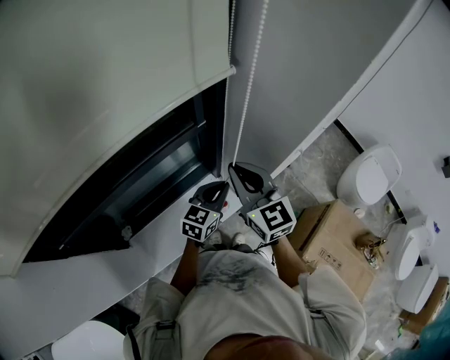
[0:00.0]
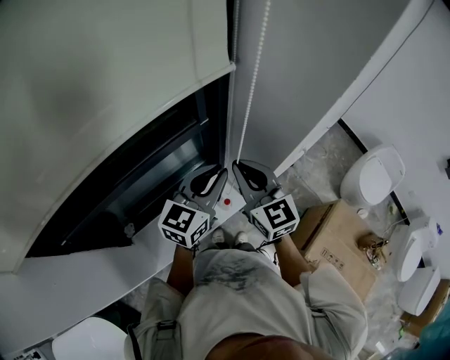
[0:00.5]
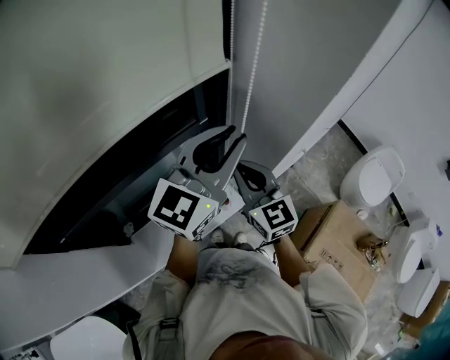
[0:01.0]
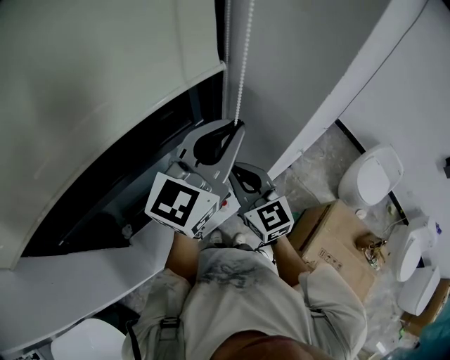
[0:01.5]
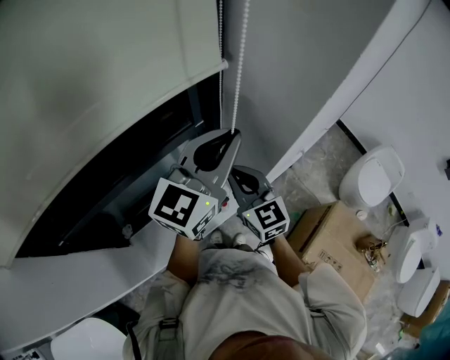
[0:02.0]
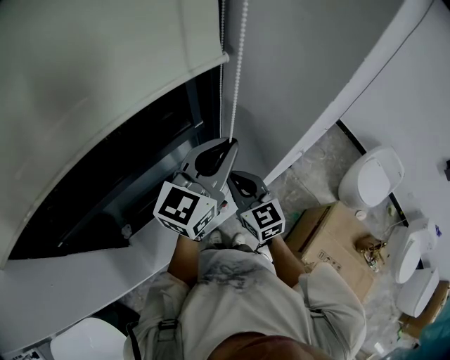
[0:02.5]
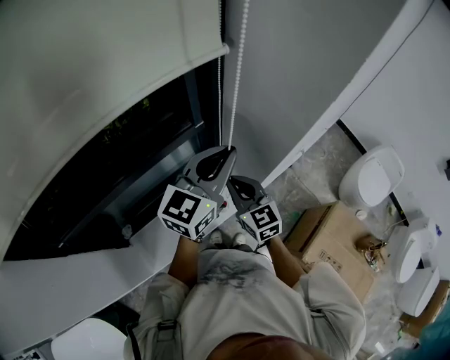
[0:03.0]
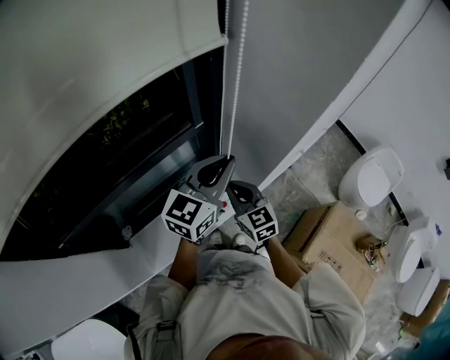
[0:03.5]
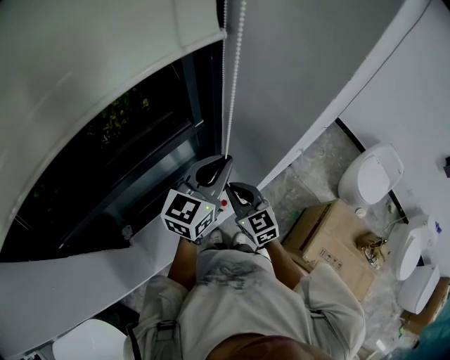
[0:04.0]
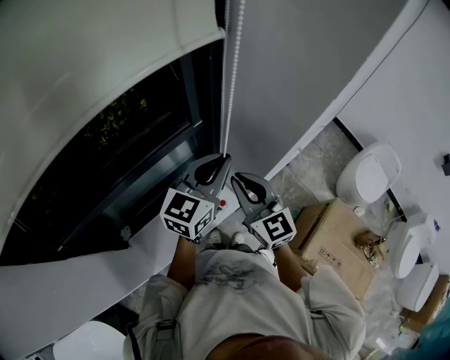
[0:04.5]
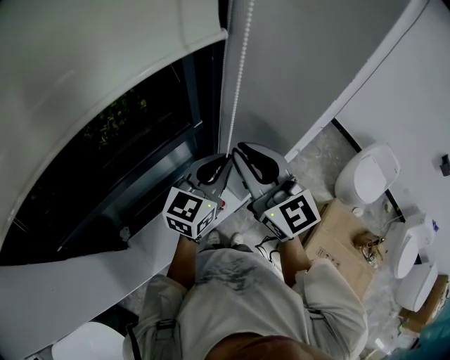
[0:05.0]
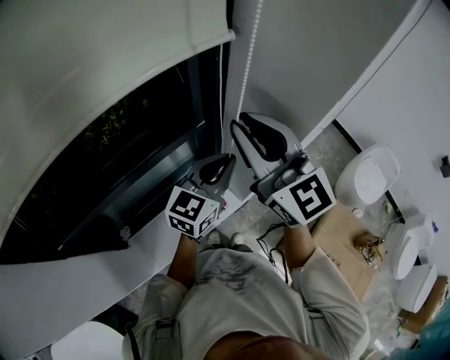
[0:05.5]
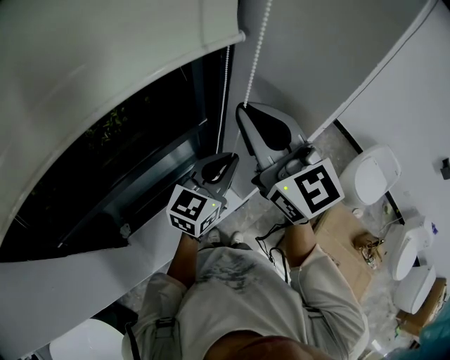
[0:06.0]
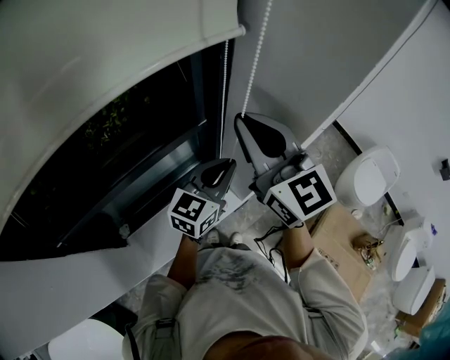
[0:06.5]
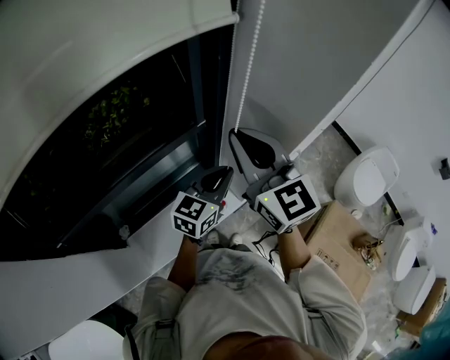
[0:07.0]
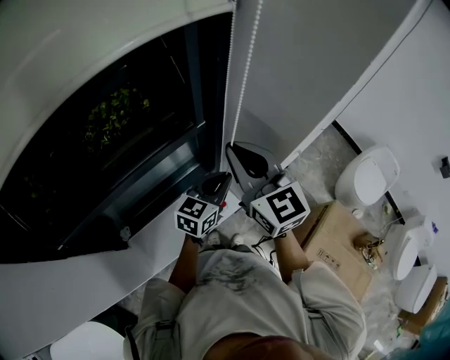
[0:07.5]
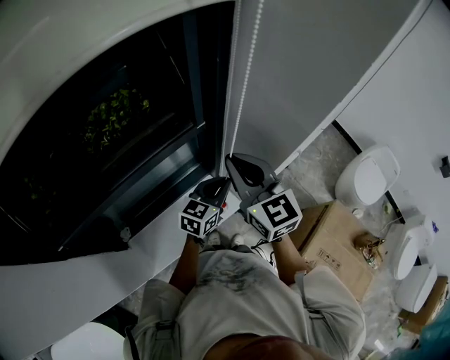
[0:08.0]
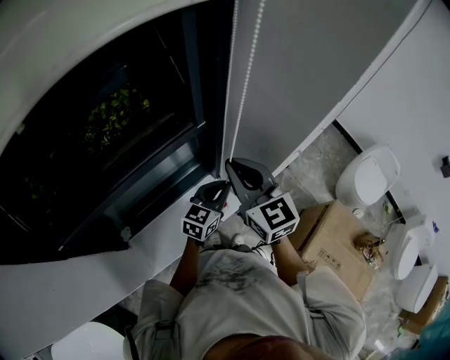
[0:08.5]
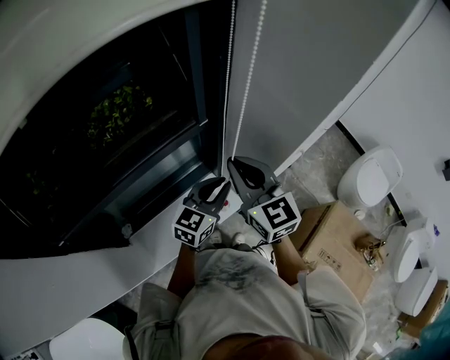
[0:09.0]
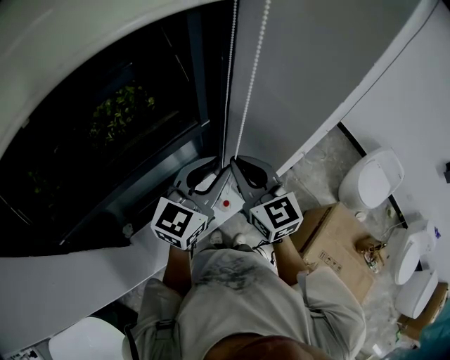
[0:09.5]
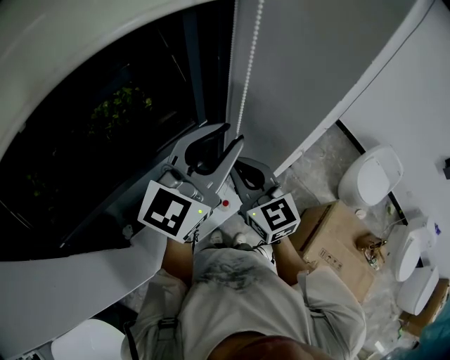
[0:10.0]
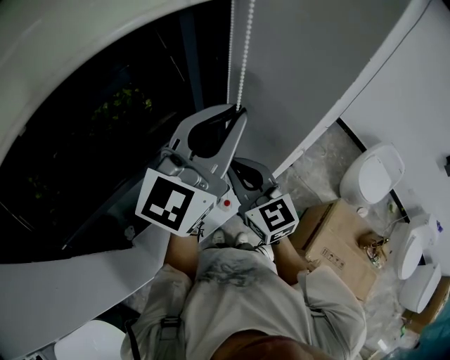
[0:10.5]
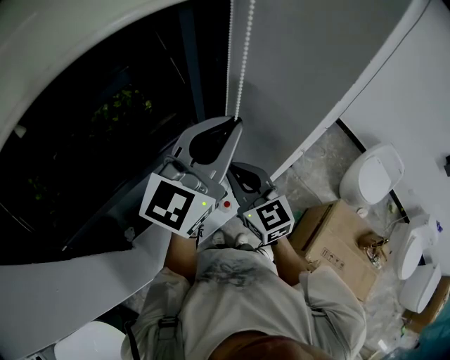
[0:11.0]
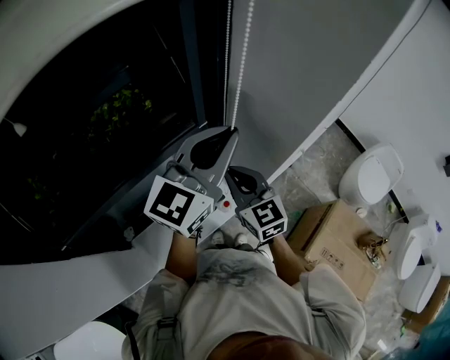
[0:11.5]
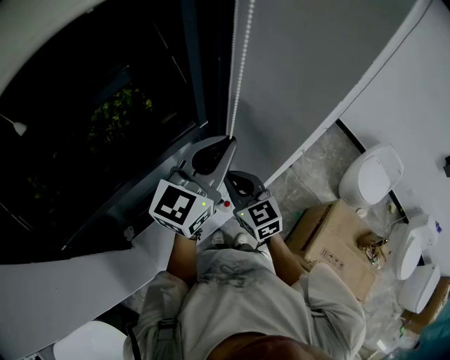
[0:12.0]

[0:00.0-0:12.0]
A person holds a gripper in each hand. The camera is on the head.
0:00.0 to 0:02.0: The left gripper goes some 30 cm upward, and turns by some 30 degrees.
0:02.0 to 0:04.0: The grippers both shift downward by approximately 10 cm.
0:04.0 to 0:06.0: The right gripper heads upward, covering some 30 cm, and swivels some 30 degrees.
0:06.0 to 0:08.0: Both grippers move downward, some 15 cm.
0:08.0 to 0:10.0: The left gripper goes some 30 cm upward, swivels approximately 30 degrees, and opens.
0:10.0 to 0:12.0: The right gripper moves downward, approximately 10 cm, while the left gripper travels downward by some 5 cm, and closes.

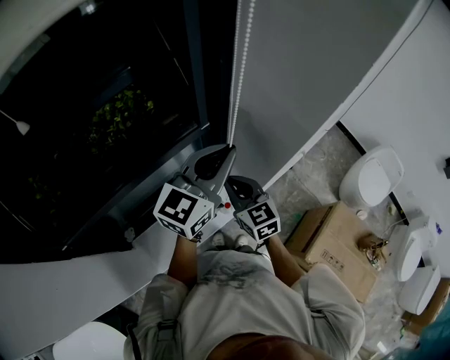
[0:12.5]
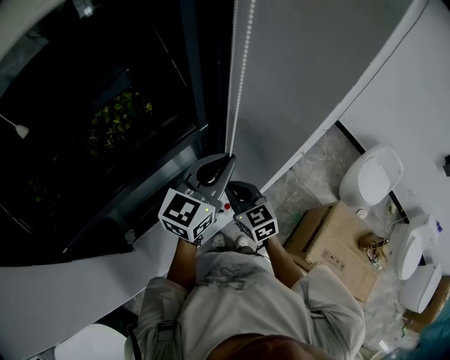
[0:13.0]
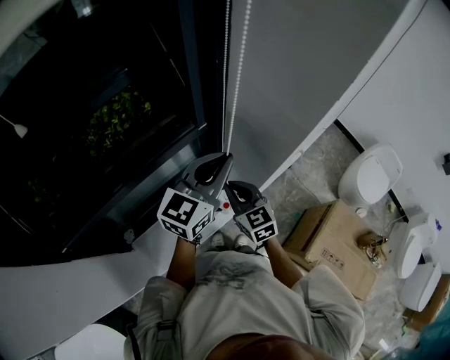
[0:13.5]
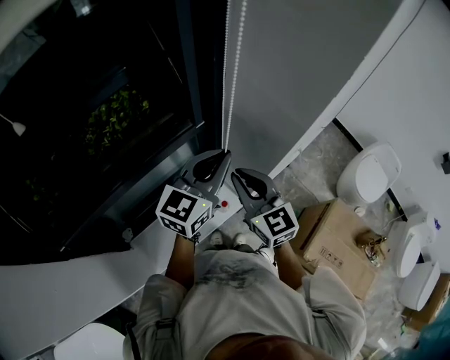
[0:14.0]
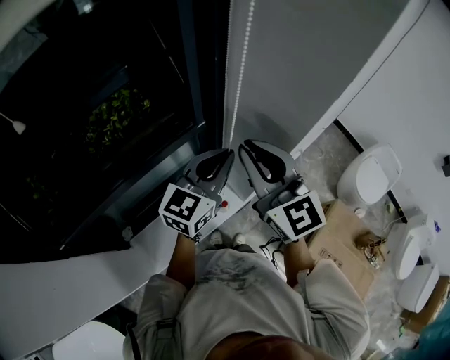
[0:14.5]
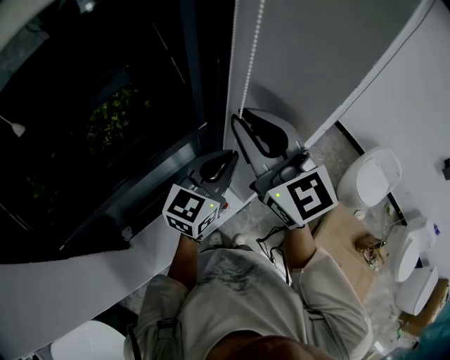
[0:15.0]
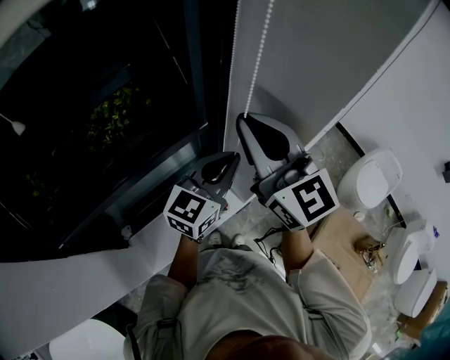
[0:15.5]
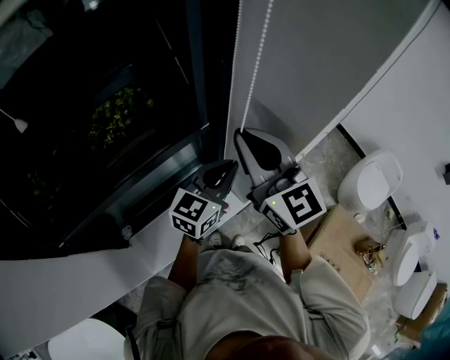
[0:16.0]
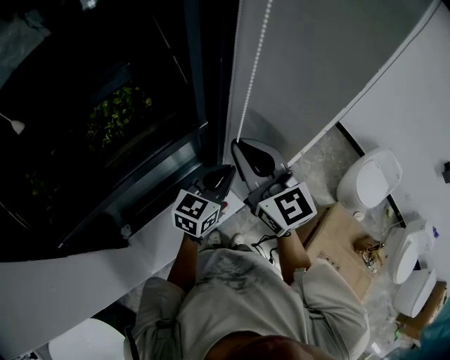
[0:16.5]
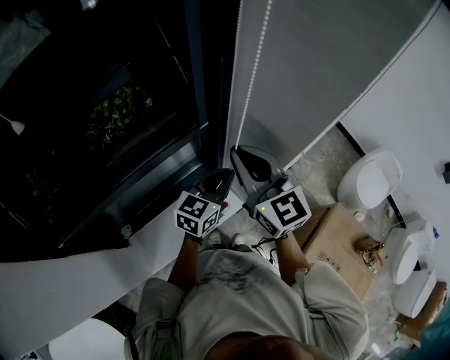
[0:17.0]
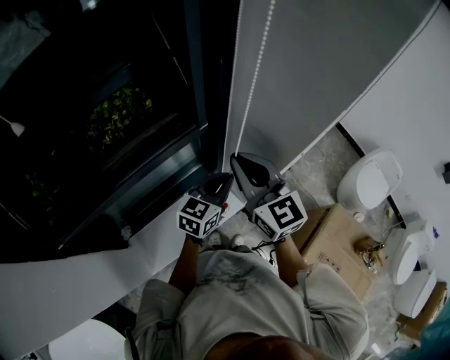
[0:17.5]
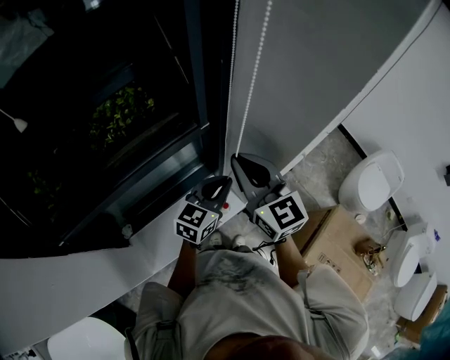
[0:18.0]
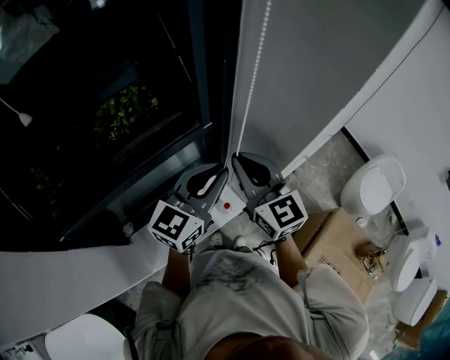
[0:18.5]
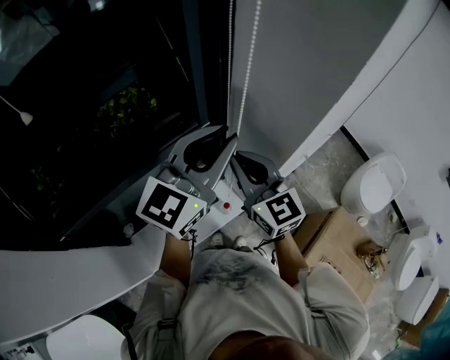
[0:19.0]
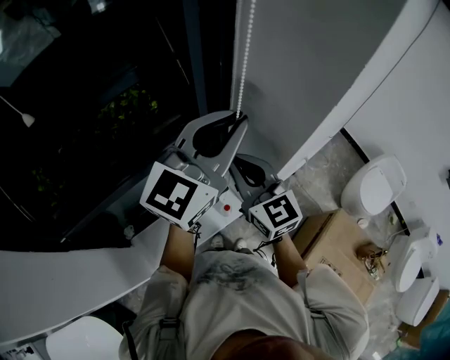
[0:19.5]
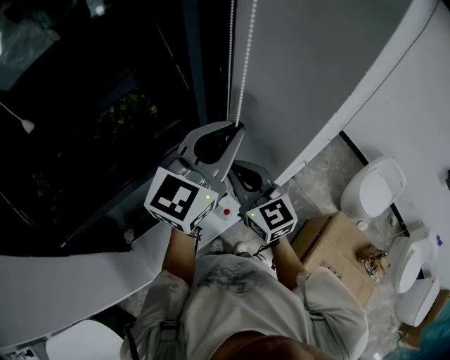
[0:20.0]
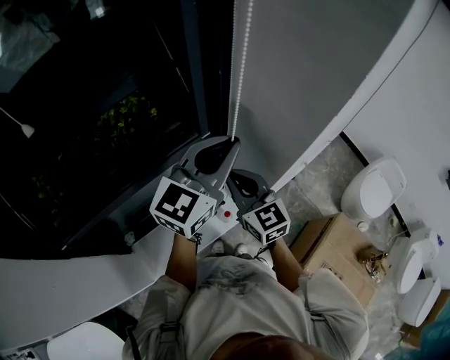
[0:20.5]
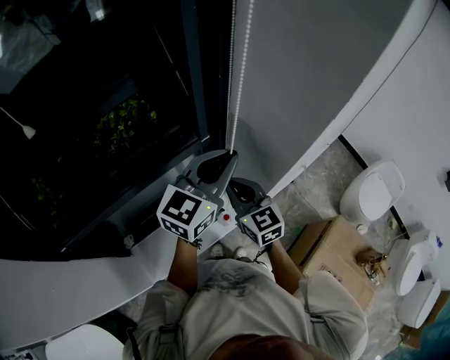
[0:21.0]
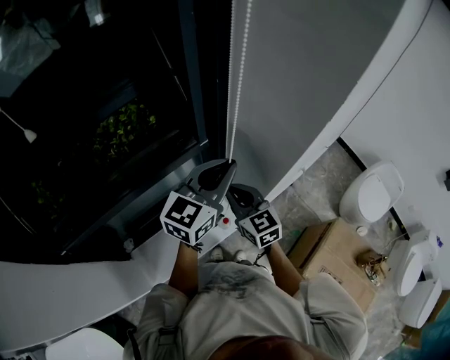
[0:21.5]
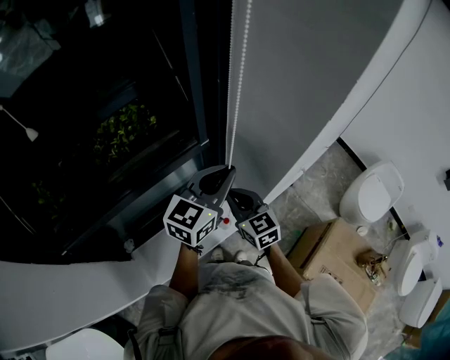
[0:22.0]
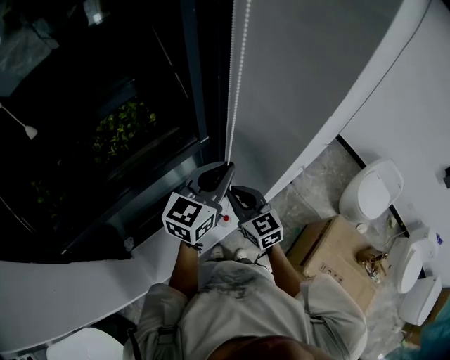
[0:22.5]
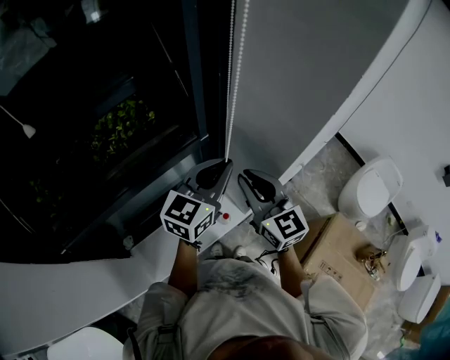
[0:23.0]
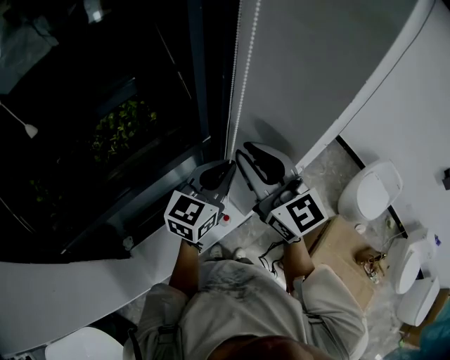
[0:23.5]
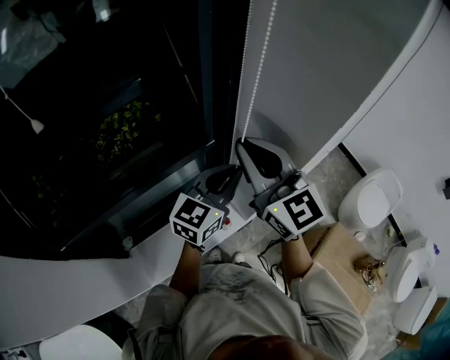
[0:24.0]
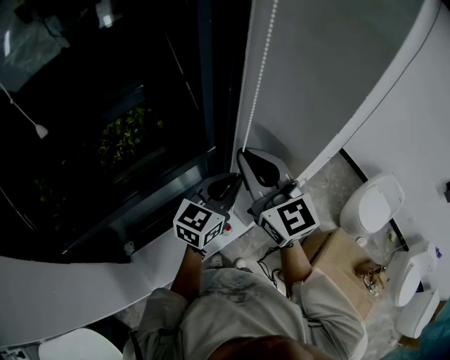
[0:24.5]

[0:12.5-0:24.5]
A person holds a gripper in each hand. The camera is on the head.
0:12.5 to 0:14.5: The right gripper goes about 20 cm upward, and swivels some 20 degrees.
0:14.5 to 0:16.5: The right gripper moves approximately 5 cm upward and comes back. Meanwhile the left gripper is displaced downward by some 10 cm.
0:16.5 to 0:18.5: The right gripper moves some 5 cm. The left gripper moves upward, roughly 10 cm.
0:18.5 to 0:20.5: The left gripper goes about 10 cm upward, while the right gripper shifts some 5 cm downward.
0:20.5 to 0:22.5: Both grippers move downward, some 10 cm.
0:22.5 to 0:24.5: The right gripper goes about 20 cm upward, and rotates approximately 20 degrees.

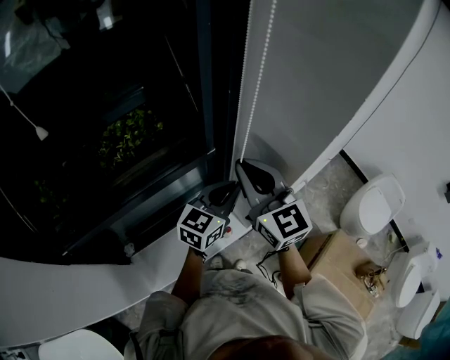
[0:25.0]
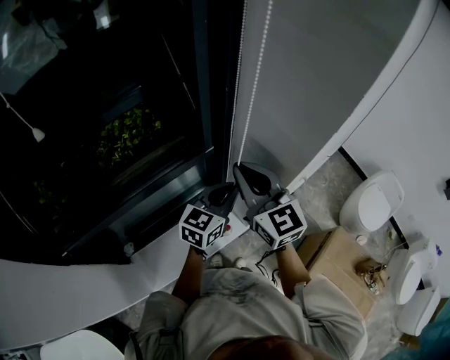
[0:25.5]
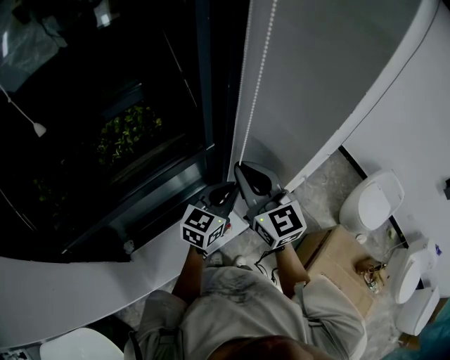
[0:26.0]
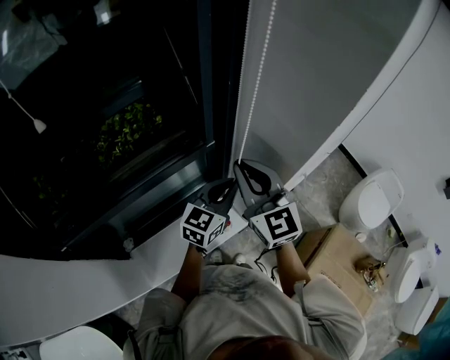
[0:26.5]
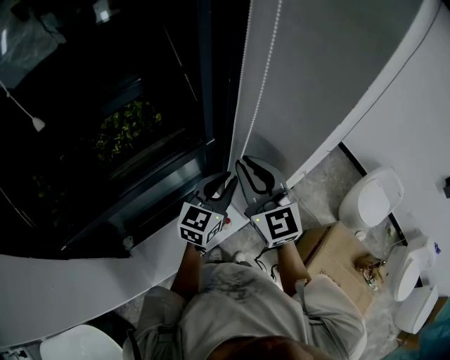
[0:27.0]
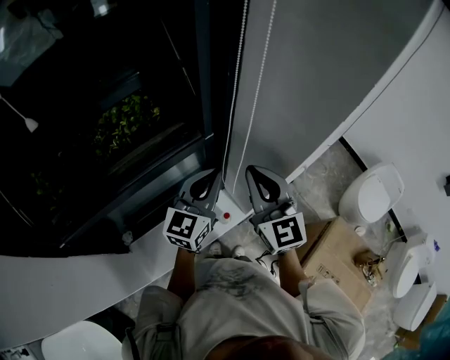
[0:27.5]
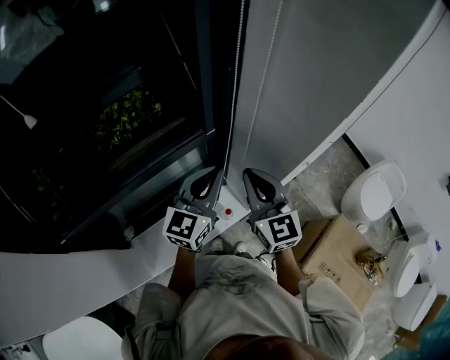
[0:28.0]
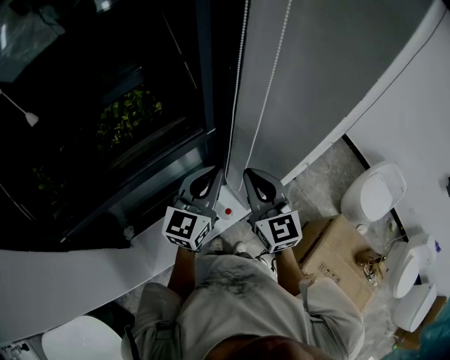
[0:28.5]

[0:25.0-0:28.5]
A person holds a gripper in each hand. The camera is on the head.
0:25.0 to 0:27.0: There are only small adjustments of the grippers.
0:27.0 to 0:28.5: The right gripper moves downward, about 5 cm, while the left gripper changes place by about 5 cm.
